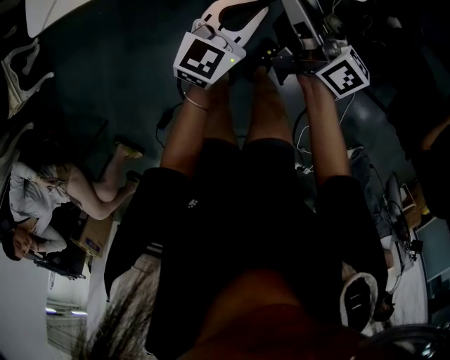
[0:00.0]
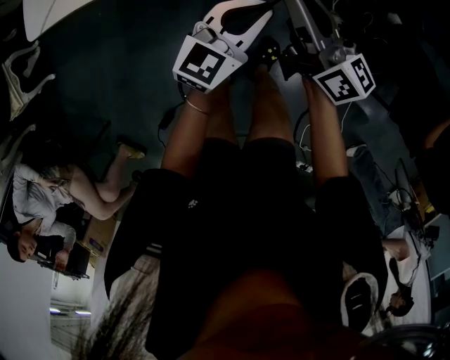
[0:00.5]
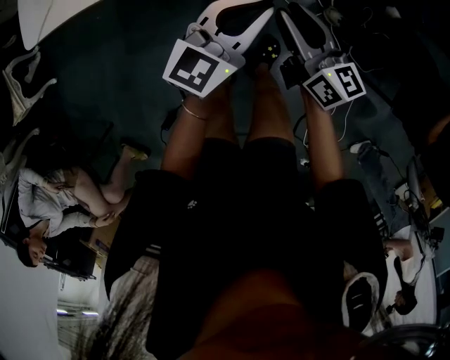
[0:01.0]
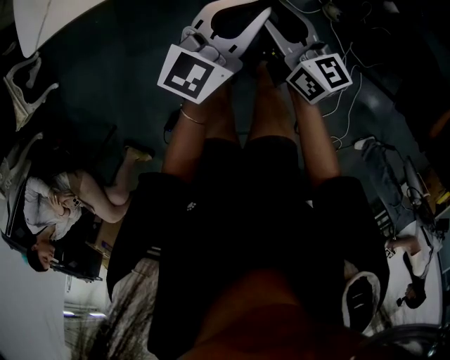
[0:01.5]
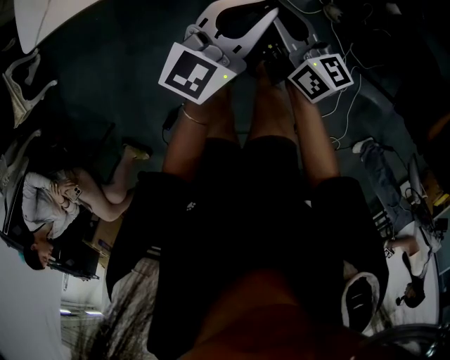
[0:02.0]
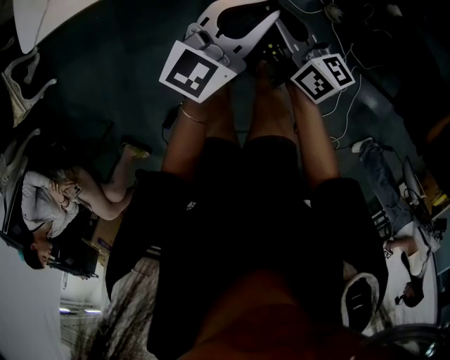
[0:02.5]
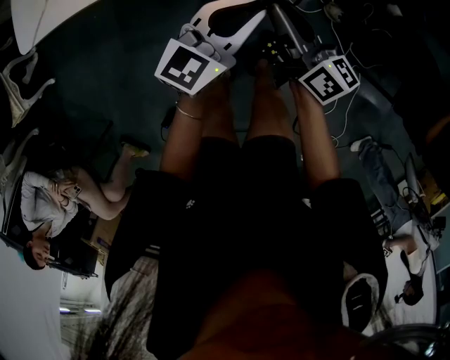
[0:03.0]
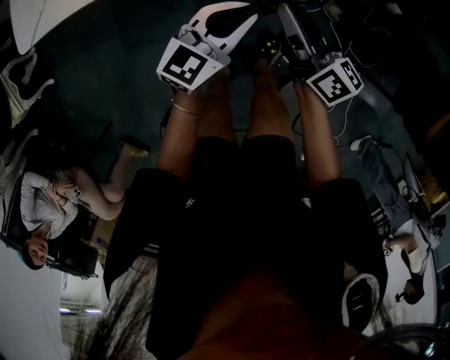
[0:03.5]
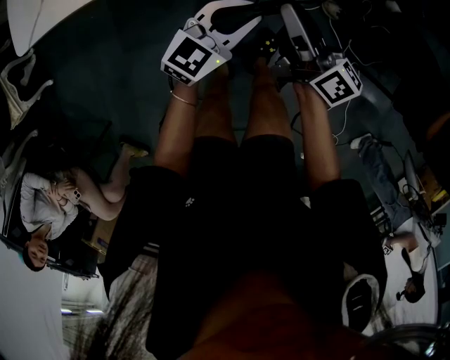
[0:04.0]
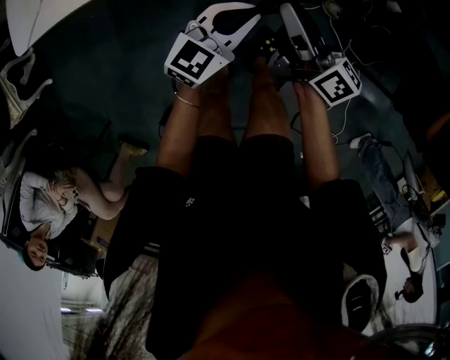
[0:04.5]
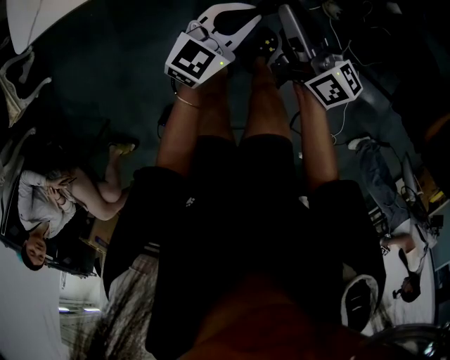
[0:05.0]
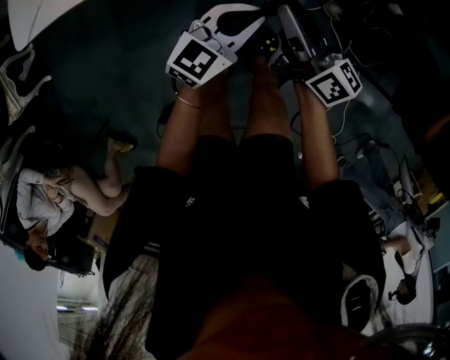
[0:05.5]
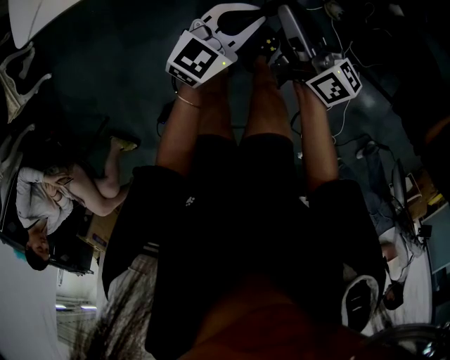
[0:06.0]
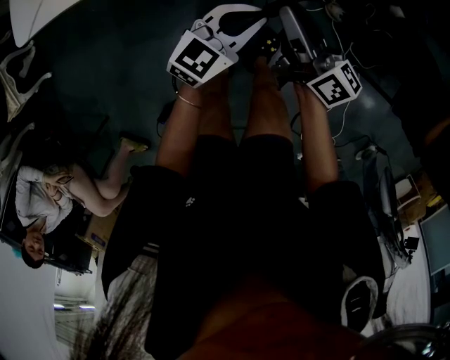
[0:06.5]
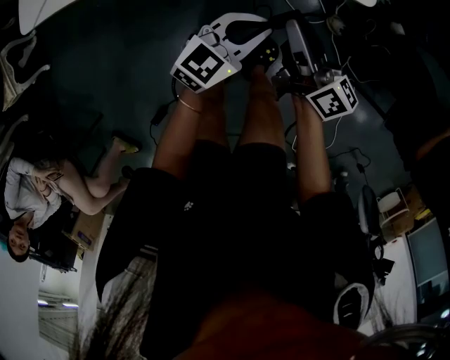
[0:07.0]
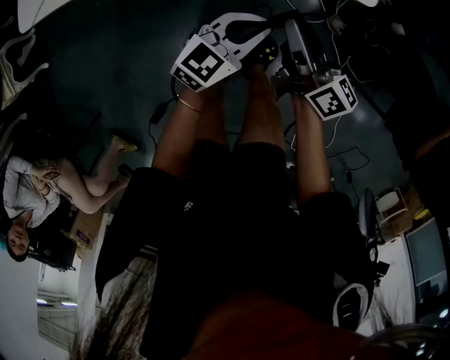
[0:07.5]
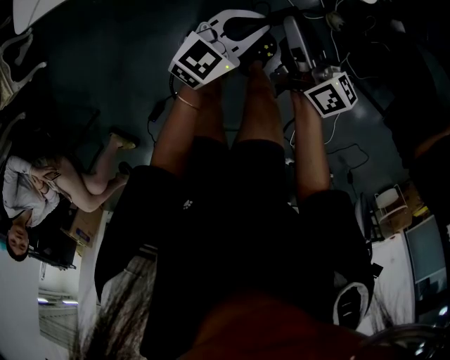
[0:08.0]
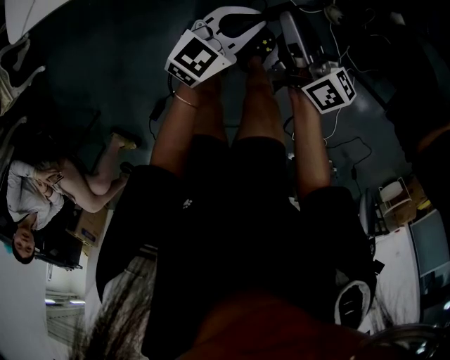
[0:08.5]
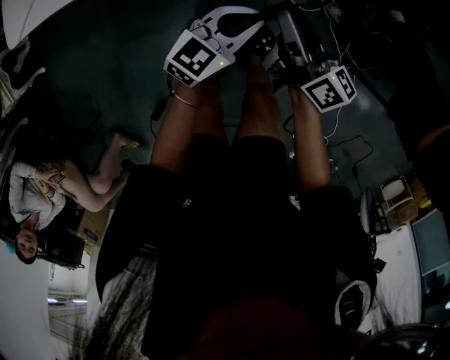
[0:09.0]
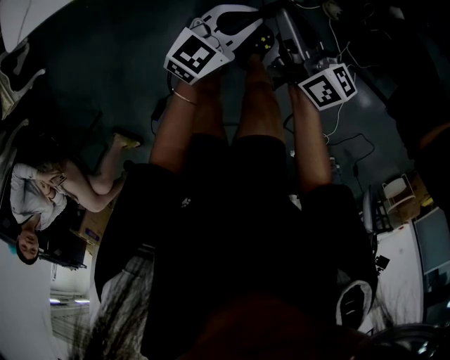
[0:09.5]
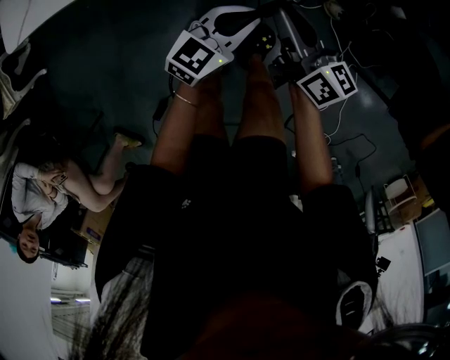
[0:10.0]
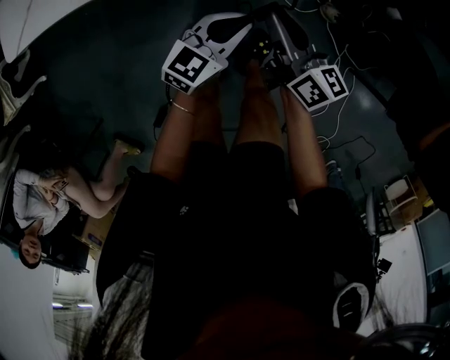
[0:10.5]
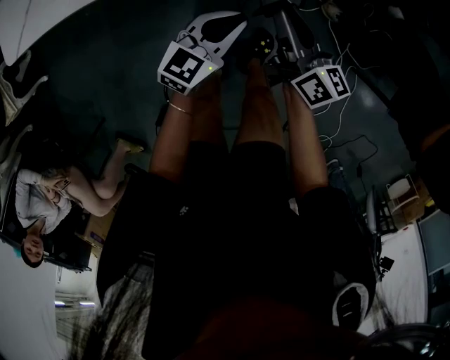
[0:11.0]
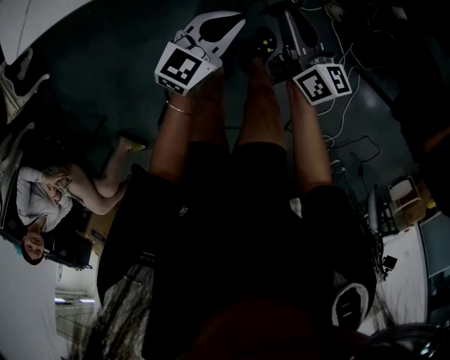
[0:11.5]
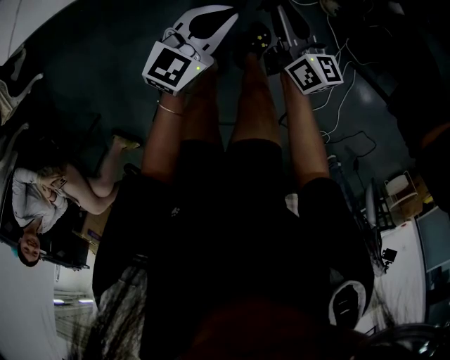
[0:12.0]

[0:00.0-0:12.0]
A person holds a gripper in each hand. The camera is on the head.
0:00.0 to 0:02.0: The right gripper travels downward by roughly 5 cm, and rotates approximately 20 degrees. Meanwhile the left gripper travels upward by approximately 5 cm.
0:02.0 to 0:04.0: The left gripper travels downward by some 10 cm.
0:04.0 to 0:10.0: The grippers stay close to where they were, moving slightly.
0:10.0 to 0:12.0: The right gripper heads downward, covering roughly 5 cm.

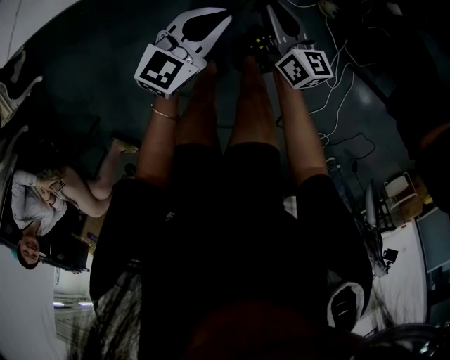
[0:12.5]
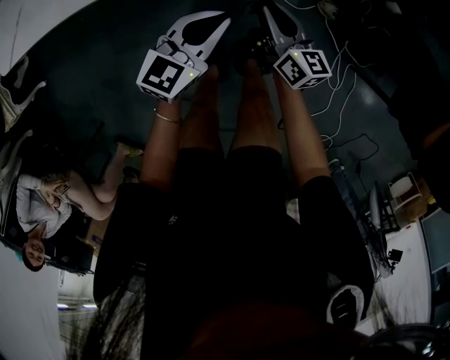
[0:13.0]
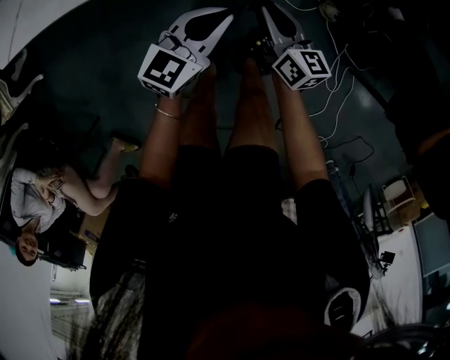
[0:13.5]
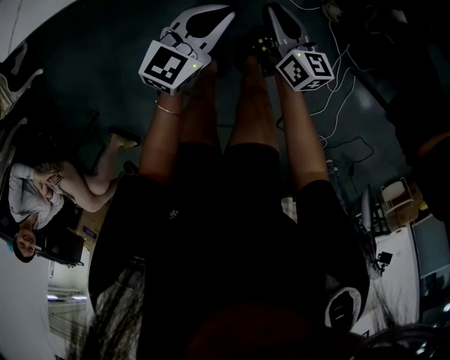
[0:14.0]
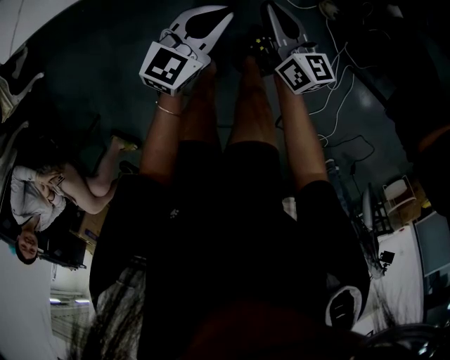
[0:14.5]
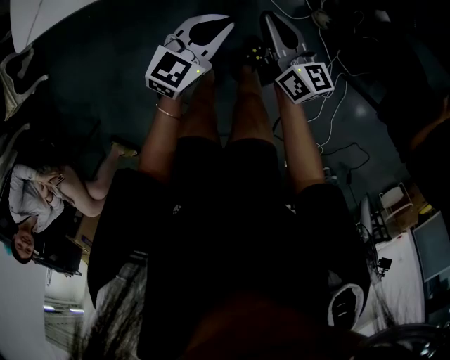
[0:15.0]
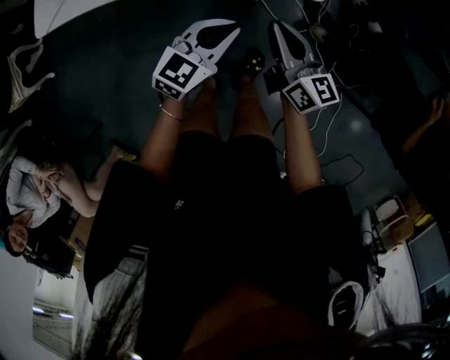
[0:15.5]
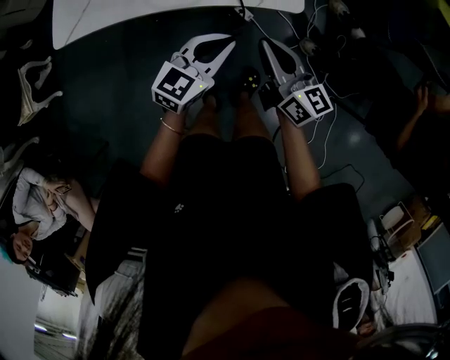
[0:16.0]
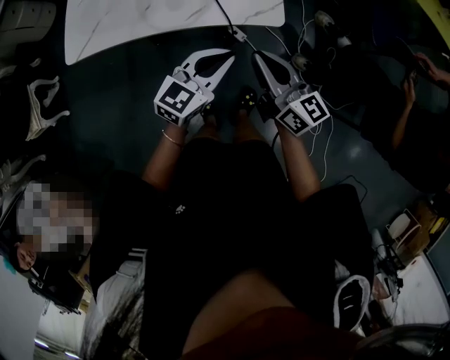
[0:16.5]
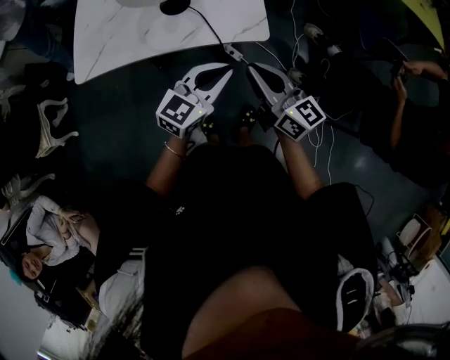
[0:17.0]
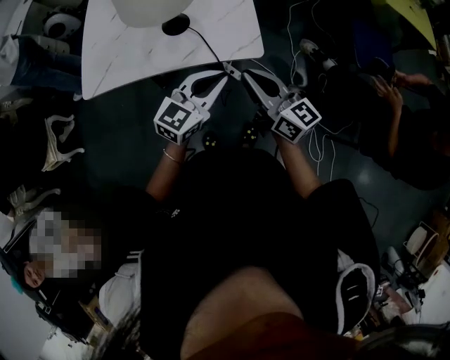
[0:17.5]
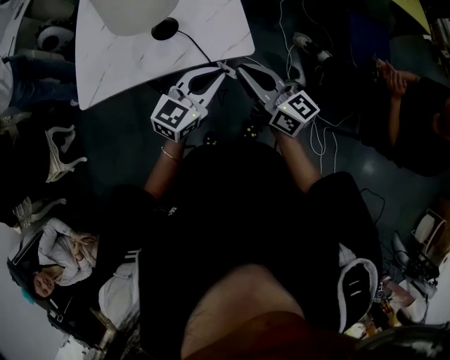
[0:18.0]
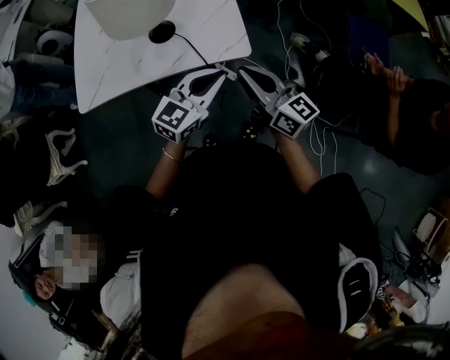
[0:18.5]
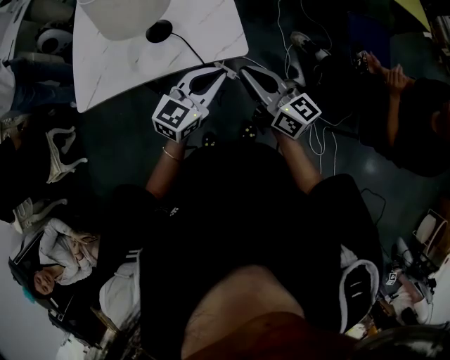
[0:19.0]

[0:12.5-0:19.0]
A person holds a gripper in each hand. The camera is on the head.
0:12.5 to 0:14.5: The grippers make only small movements.
0:14.5 to 0:17.0: Both grippers travel together upward, about 25 cm. The right gripper turns by roughly 20 degrees.
0:17.0 to 0:19.0: The left gripper shifts by roughly 5 cm.

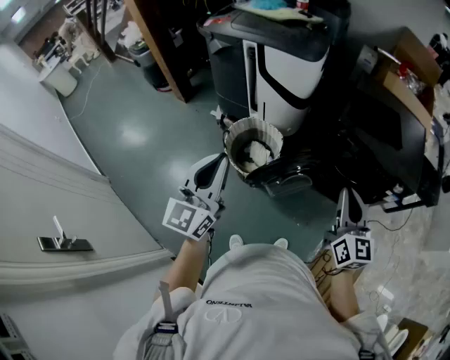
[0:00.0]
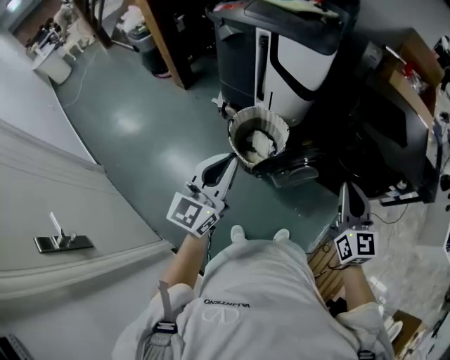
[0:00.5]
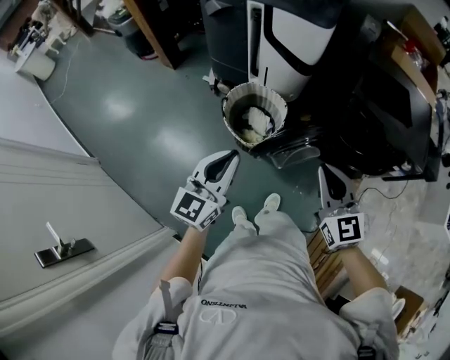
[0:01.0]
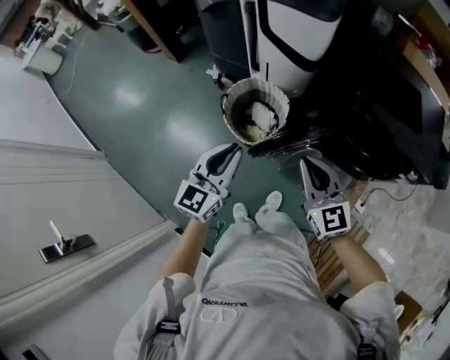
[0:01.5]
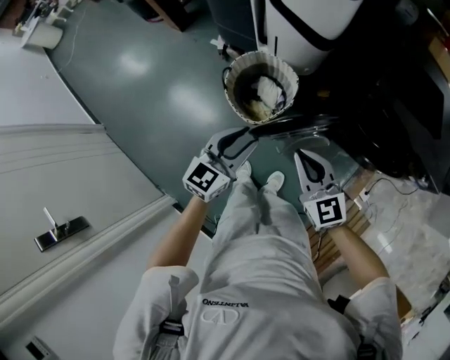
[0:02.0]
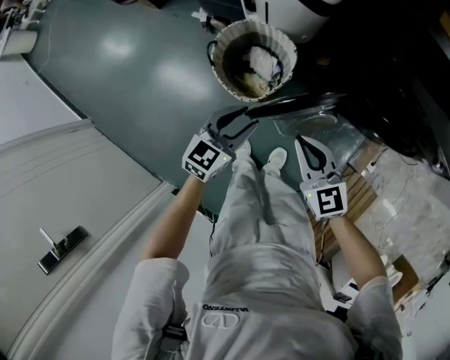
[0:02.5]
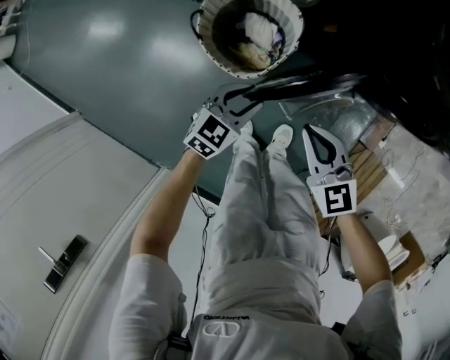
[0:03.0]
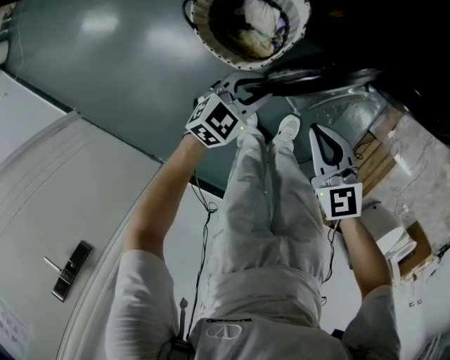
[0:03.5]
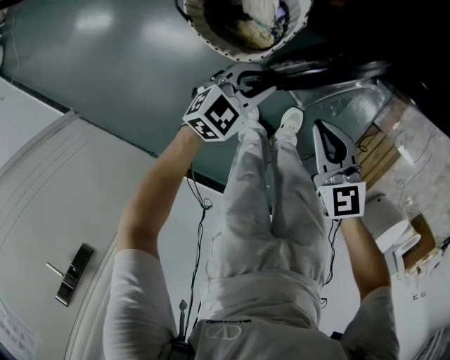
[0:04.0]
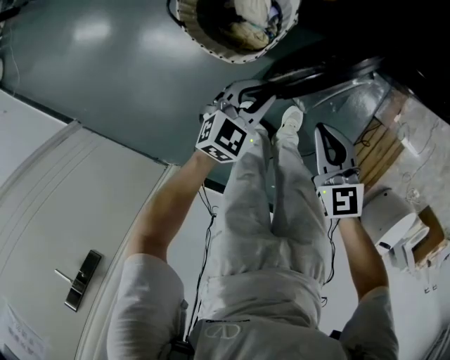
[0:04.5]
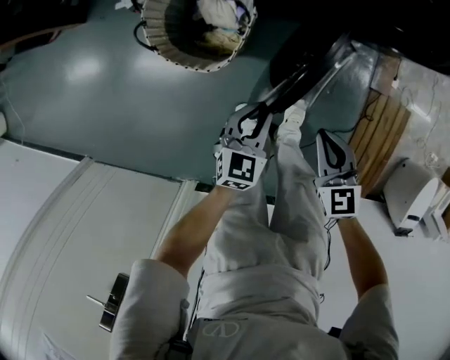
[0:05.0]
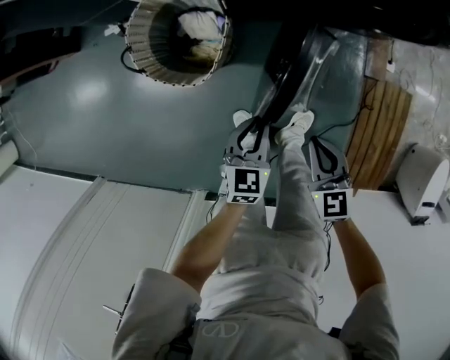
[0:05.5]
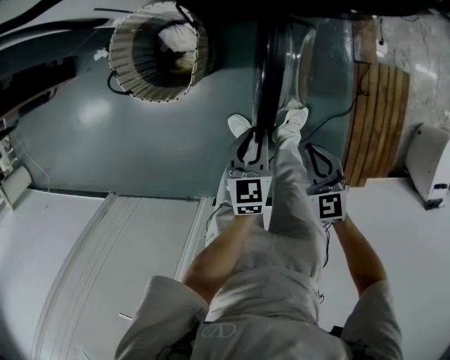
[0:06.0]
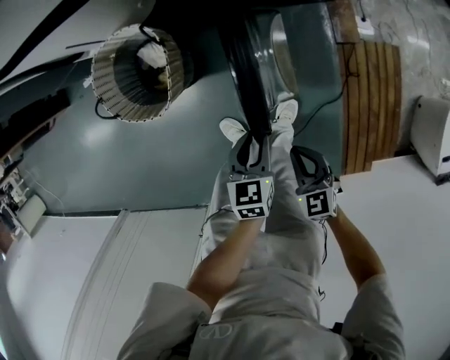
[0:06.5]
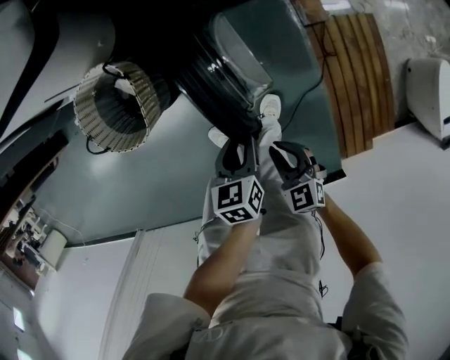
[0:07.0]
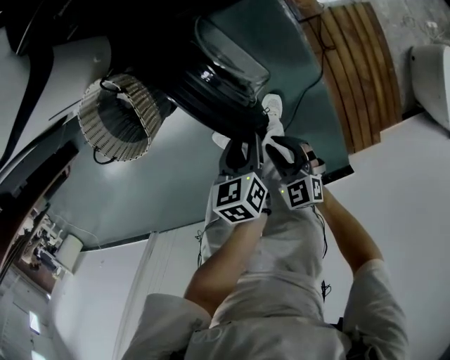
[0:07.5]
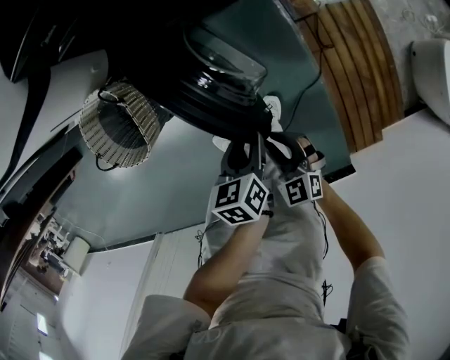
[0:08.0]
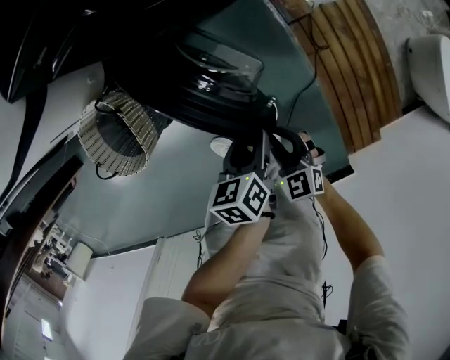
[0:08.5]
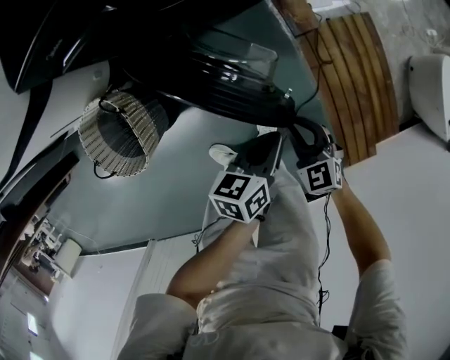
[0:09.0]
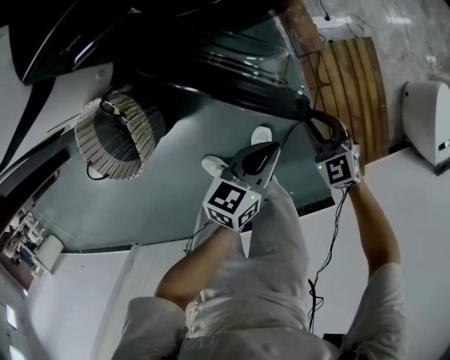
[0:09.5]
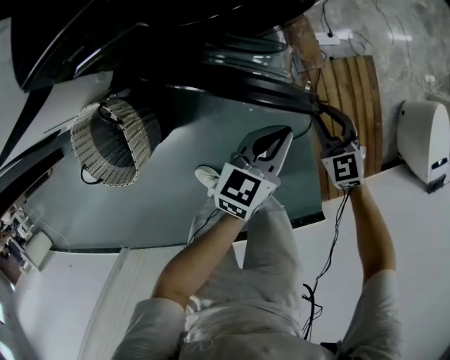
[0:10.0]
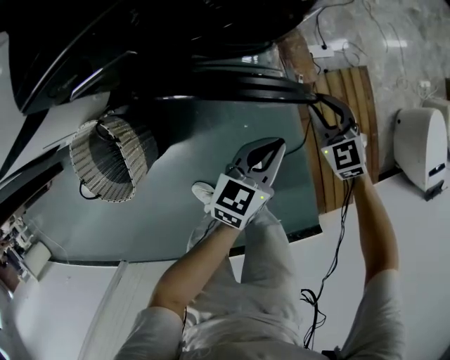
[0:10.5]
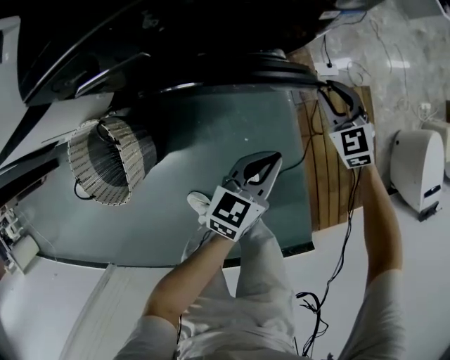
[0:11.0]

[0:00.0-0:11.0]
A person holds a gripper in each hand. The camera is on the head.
0:00.0 to 0:02.0: The right gripper travels downward, to the left and forward by some 25 cm, and rotates about 40 degrees. Meanwhile the left gripper is displaced downward and forward by about 25 cm, rotates some 30 degrees, and opens.
0:02.0 to 0:03.5: The grippers both shift downward by some 25 cm. The left gripper turns by roughly 40 degrees.
0:03.5 to 0:05.5: The right gripper is displaced to the right, backward and downward by roughly 20 cm, and turns by some 30 degrees. The left gripper goes roughly 15 cm to the right and backward.
0:05.5 to 0:07.5: The left gripper moves to the right, approximately 25 cm, and turns by about 30 degrees; the right gripper moves to the right, downward and backward, about 20 cm, and opens.
0:07.5 to 0:09.0: The right gripper is displaced forward and to the right by some 15 cm. Meanwhile the left gripper travels to the right and forward by approximately 15 cm, turns by roughly 30 degrees, and closes its fingers.
0:09.0 to 0:11.0: The left gripper is displaced forward by about 15 cm, and rotates roughly 30 degrees, while the right gripper travels forward by about 30 cm.
